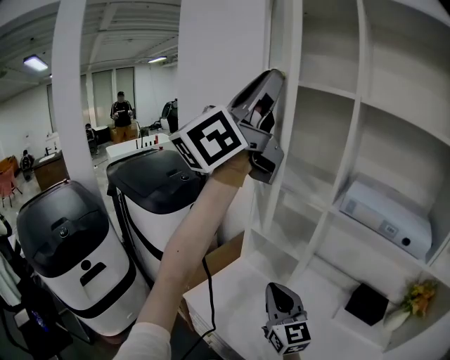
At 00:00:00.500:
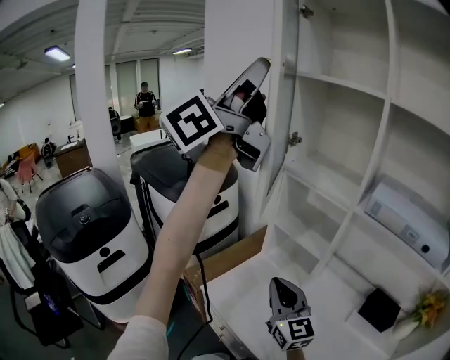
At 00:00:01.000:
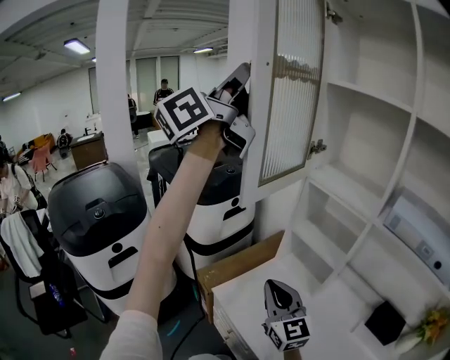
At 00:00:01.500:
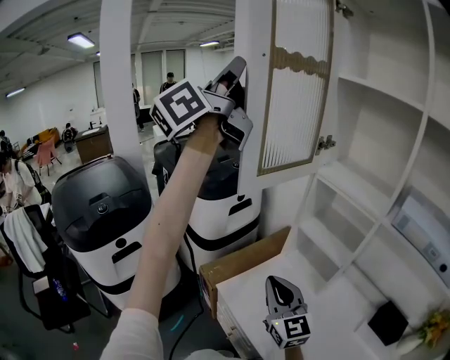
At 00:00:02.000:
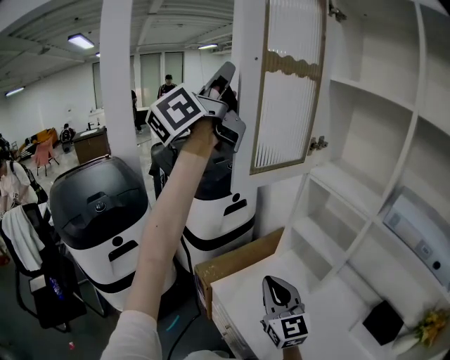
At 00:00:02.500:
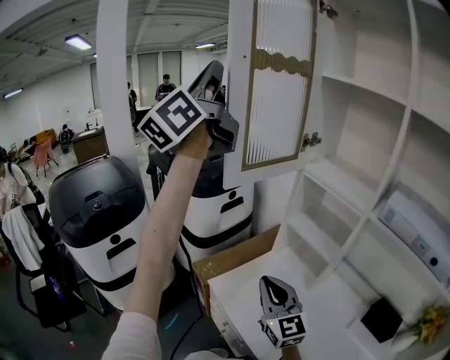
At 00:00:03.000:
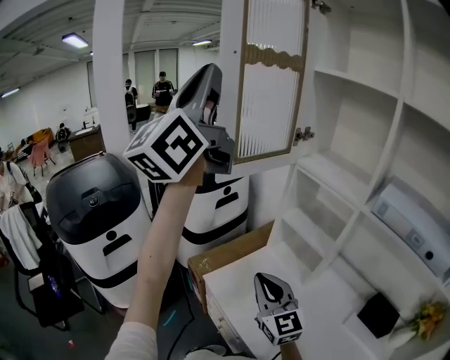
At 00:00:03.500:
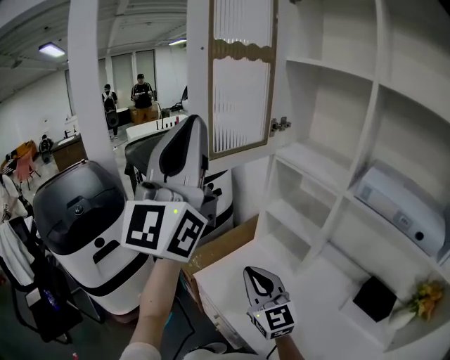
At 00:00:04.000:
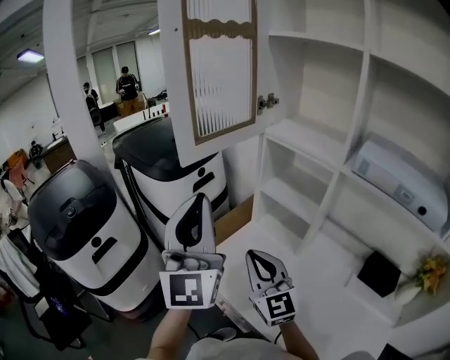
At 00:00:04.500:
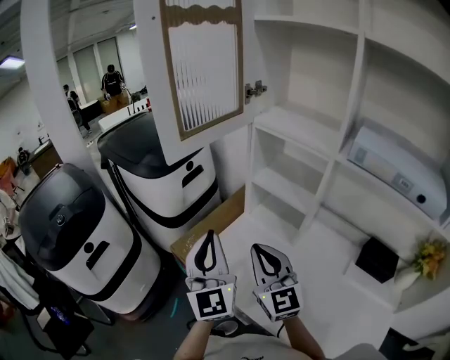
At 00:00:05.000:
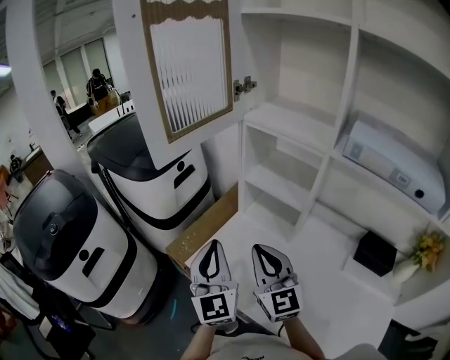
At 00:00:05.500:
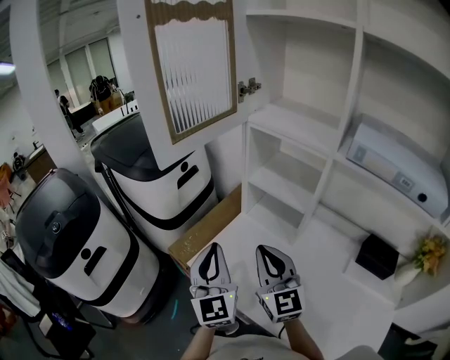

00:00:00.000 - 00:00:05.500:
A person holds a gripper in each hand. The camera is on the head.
00:00:00.000 - 00:00:02.000: The left gripper goes some 20 cm to the left, and rotates approximately 20 degrees. The right gripper moves to the left, some 10 cm.
00:00:02.000 - 00:00:03.500: The left gripper shifts some 20 cm backward, downward and to the right, and rolls clockwise, seen from behind, by approximately 40 degrees.
00:00:03.500 - 00:00:05.500: The right gripper shifts about 5 cm to the right. The left gripper travels downward by approximately 35 cm, and points its fingers approximately 40 degrees further downward.

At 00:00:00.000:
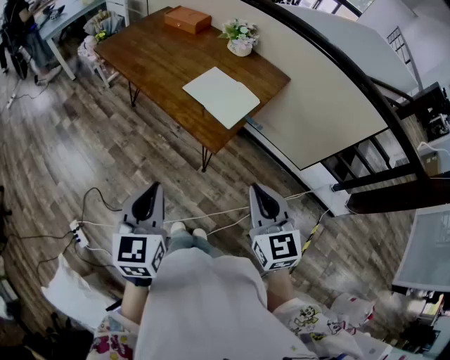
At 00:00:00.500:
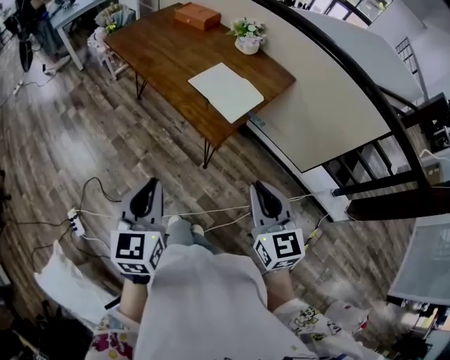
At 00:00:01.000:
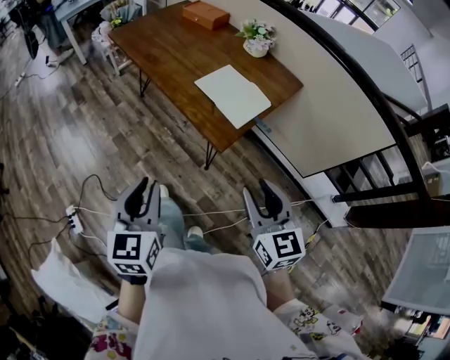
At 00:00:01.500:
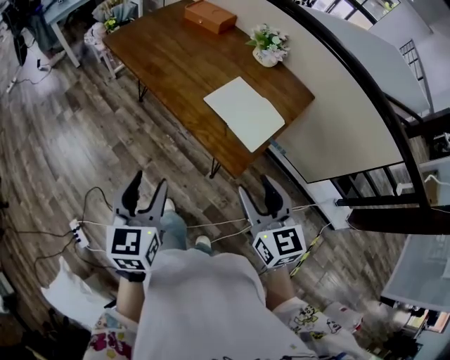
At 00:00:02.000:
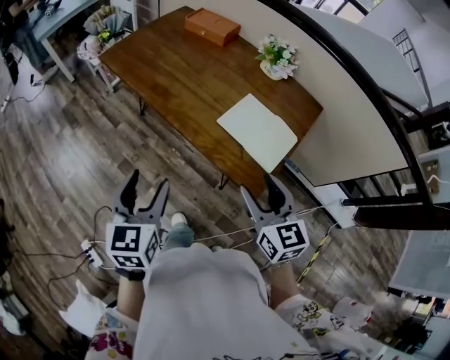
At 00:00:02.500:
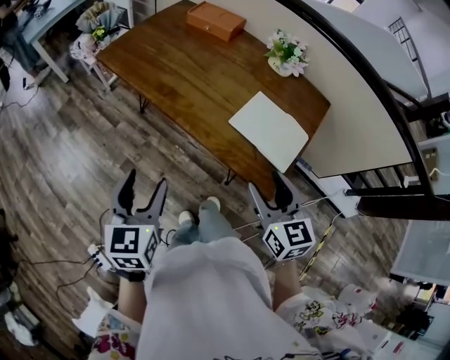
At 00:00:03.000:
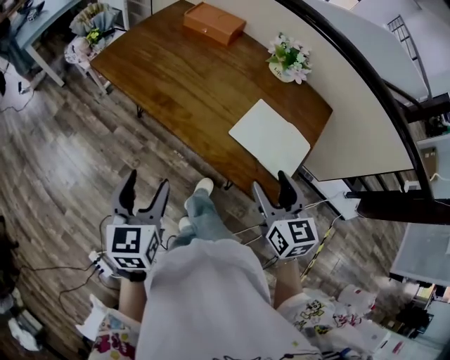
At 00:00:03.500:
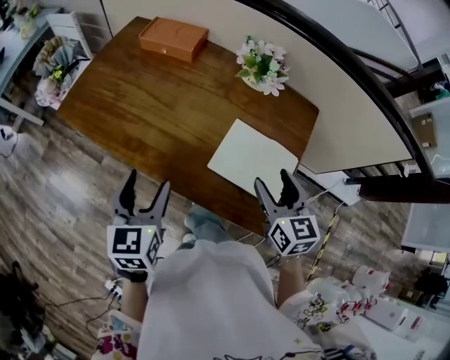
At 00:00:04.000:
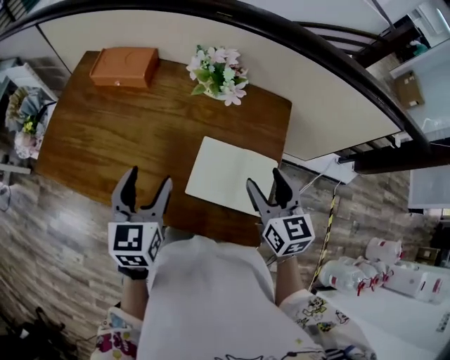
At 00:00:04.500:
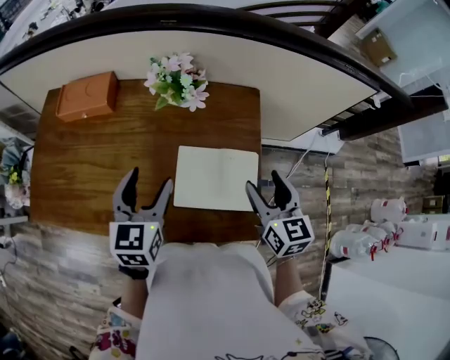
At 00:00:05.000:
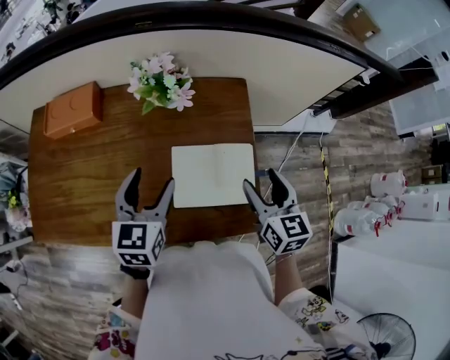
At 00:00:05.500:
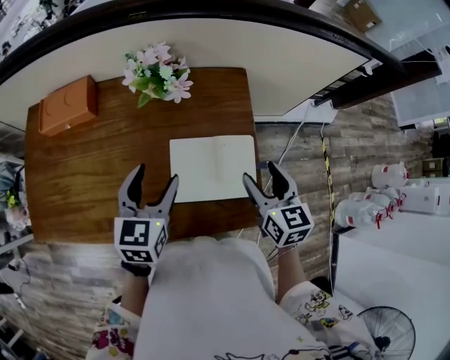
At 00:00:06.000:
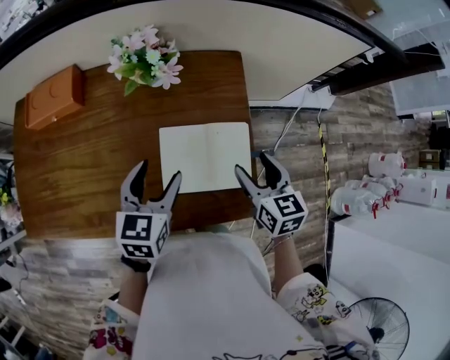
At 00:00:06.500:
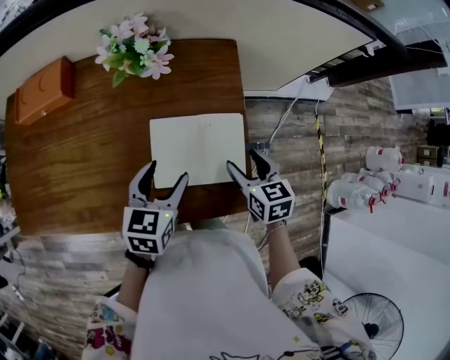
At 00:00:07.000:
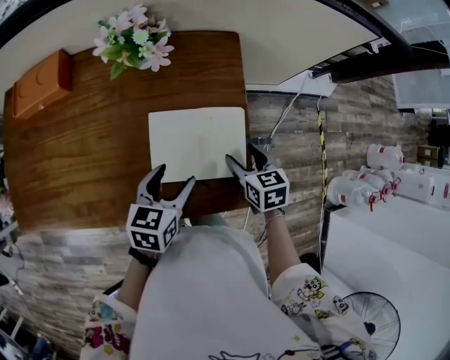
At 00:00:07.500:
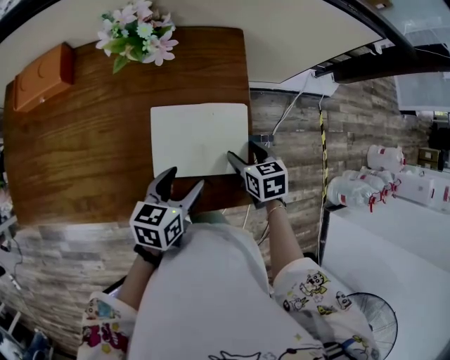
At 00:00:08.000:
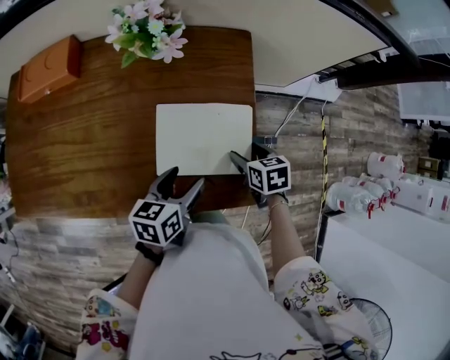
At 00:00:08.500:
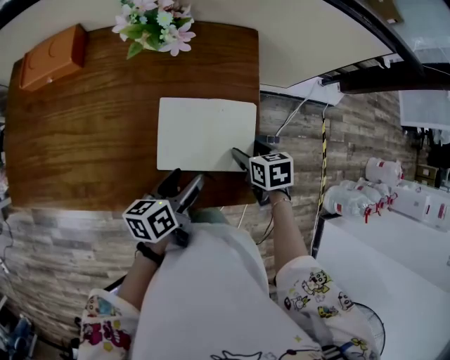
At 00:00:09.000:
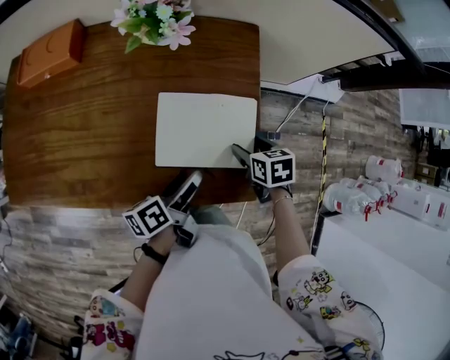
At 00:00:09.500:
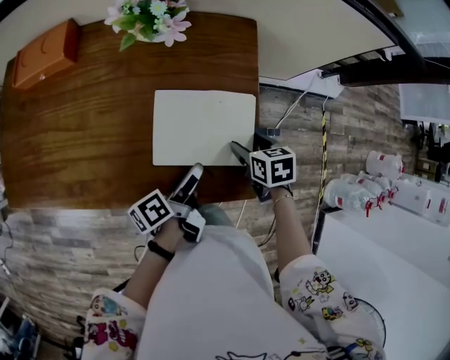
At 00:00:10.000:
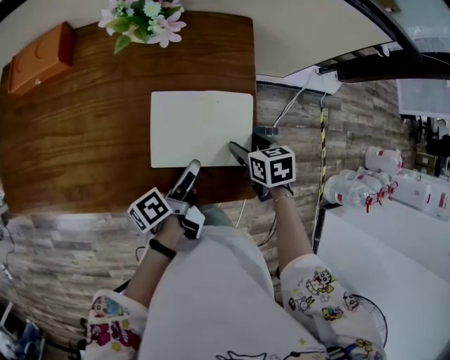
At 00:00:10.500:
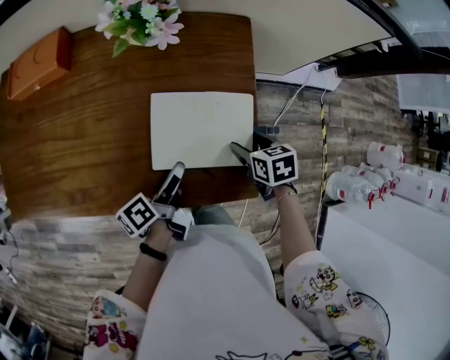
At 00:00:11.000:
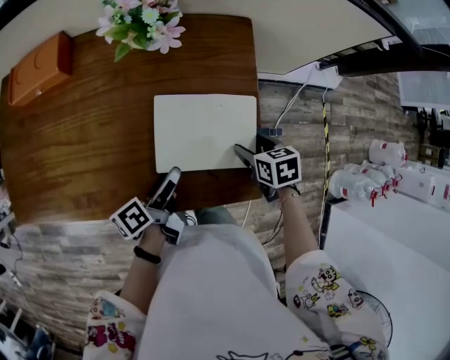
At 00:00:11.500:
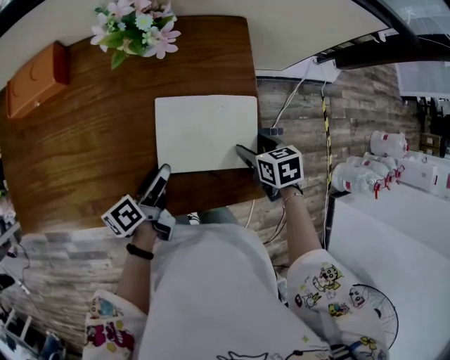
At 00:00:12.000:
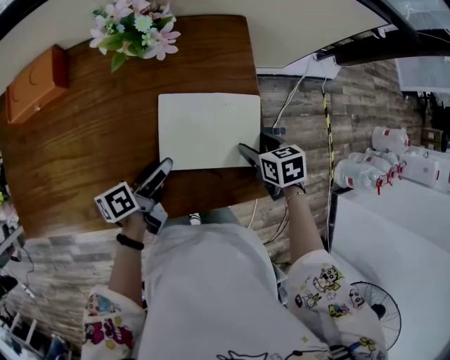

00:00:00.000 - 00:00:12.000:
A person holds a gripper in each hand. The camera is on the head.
00:00:00.000 - 00:00:02.000: The grippers both shift forward and to the left by approximately 25 cm. The right gripper opens up, while the left gripper opens.
00:00:02.000 - 00:00:04.000: The left gripper shifts by roughly 35 cm, and changes its angle by about 30 degrees. The right gripper ends up about 25 cm from where it was, and turns by about 30 degrees.
00:00:04.000 - 00:00:06.000: The right gripper shifts some 10 cm to the right and downward, and rotates approximately 20 degrees. The left gripper is displaced to the right, downward and forward by roughly 15 cm, and swivels about 30 degrees.
00:00:06.000 - 00:00:08.000: The left gripper travels downward, to the right and backward by about 15 cm, and turns by roughly 30 degrees. Meanwhile the right gripper is displaced downward by roughly 15 cm, and rotates roughly 30 degrees.
00:00:08.000 - 00:00:10.000: The left gripper rotates around the line of its fingers by about 50 degrees, counterclockwise from behind.
00:00:10.000 - 00:00:12.000: The left gripper is displaced to the left by about 10 cm, and swivels about 20 degrees.

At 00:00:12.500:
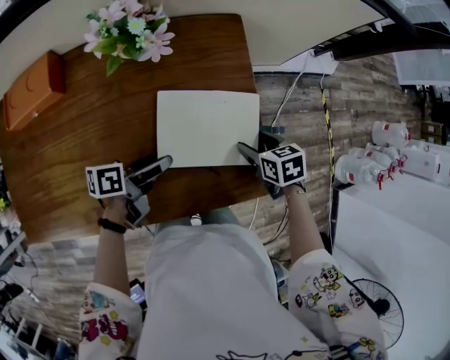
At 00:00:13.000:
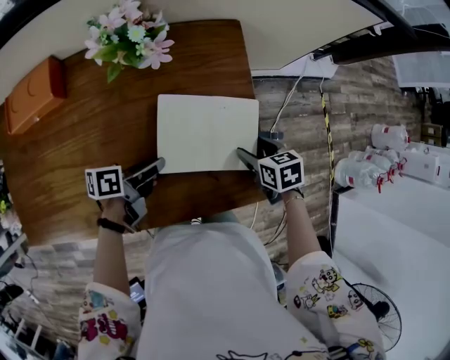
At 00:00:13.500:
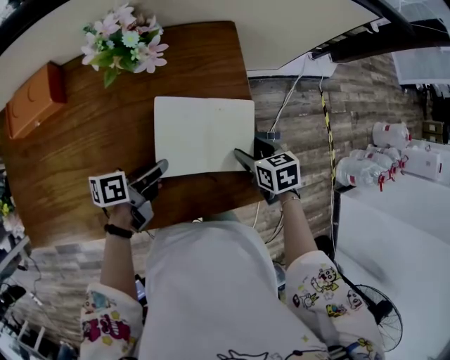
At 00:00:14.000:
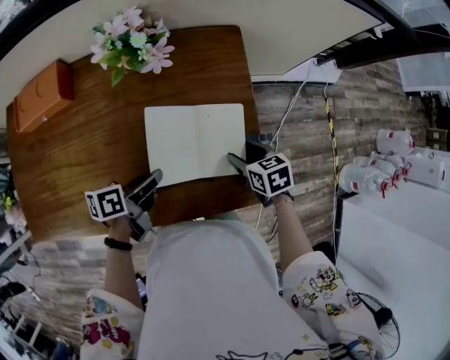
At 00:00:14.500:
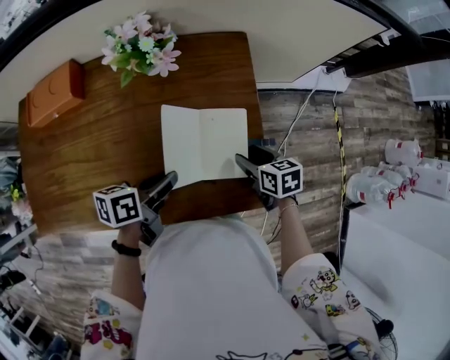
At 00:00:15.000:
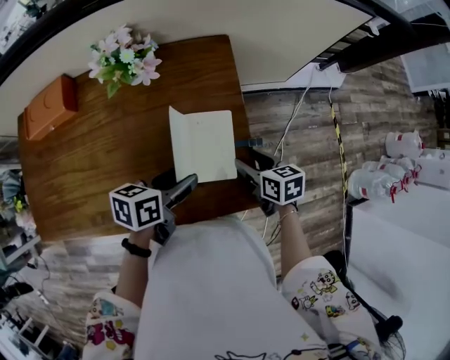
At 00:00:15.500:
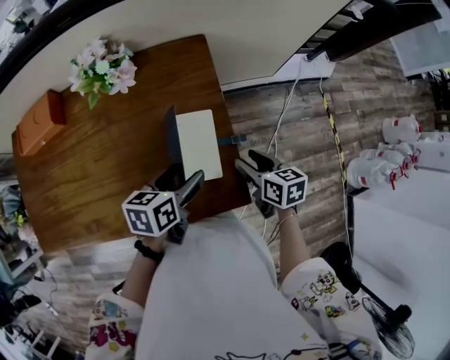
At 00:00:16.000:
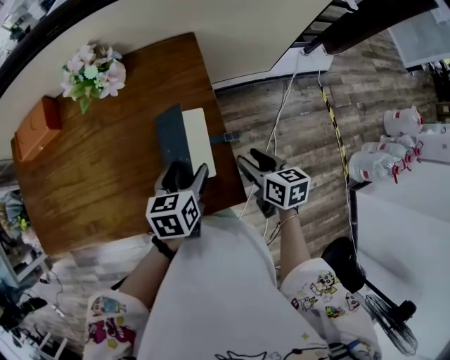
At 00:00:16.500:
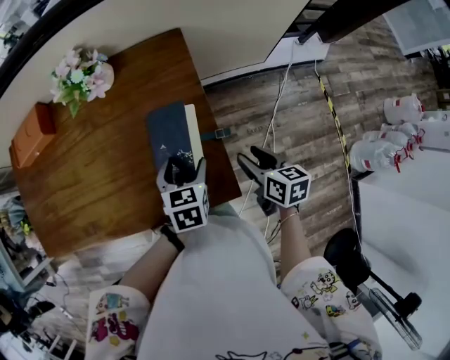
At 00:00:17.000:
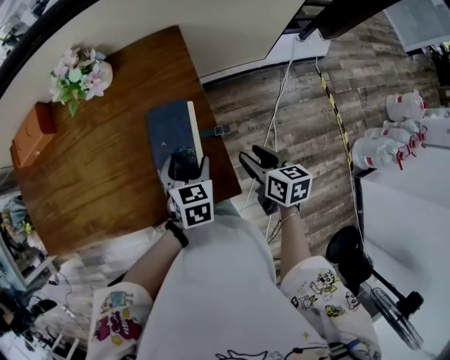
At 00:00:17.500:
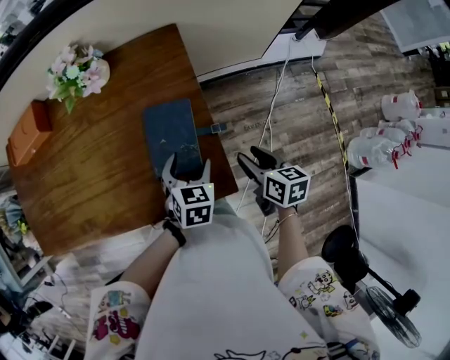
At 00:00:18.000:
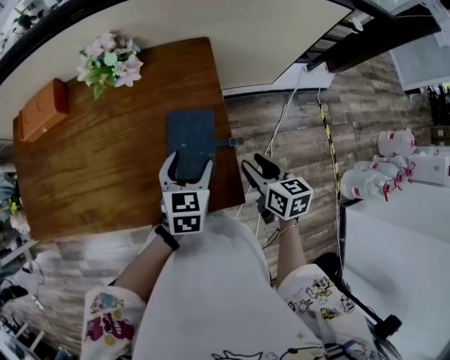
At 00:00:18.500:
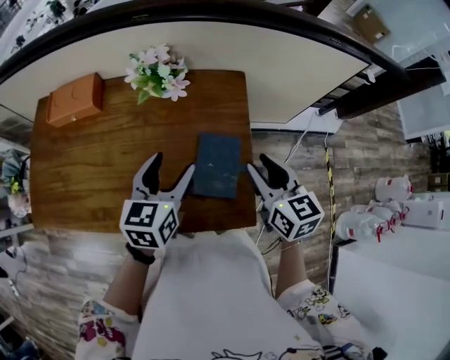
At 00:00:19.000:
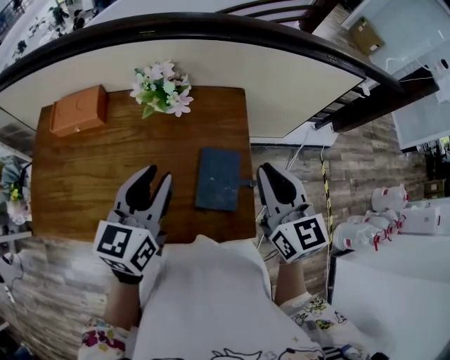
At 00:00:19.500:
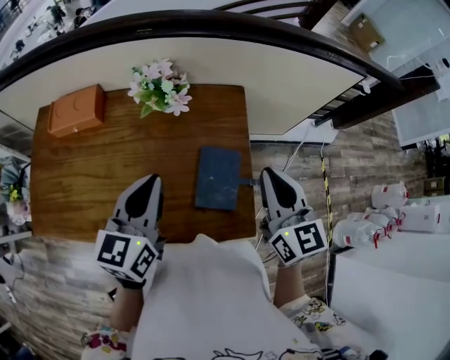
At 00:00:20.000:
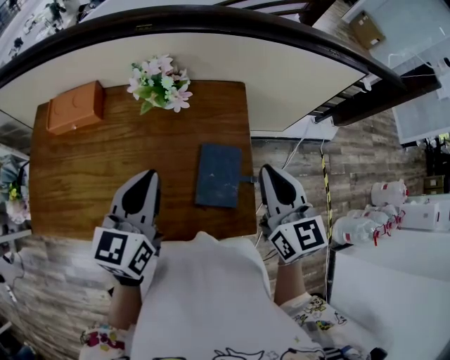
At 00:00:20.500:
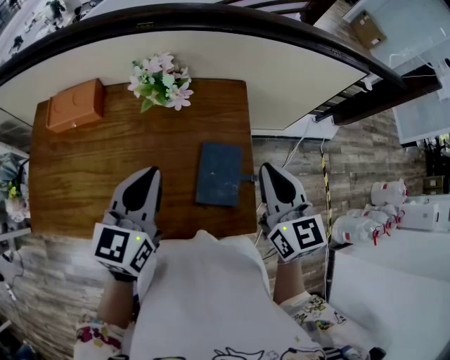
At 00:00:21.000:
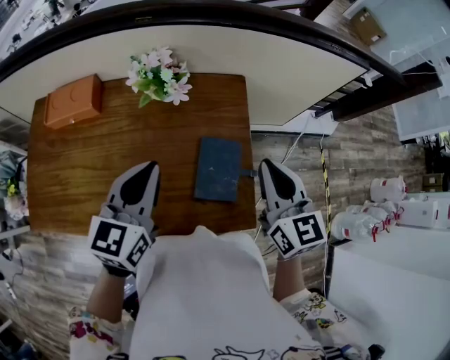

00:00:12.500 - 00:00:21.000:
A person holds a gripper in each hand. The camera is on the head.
00:00:12.500 - 00:00:14.500: The left gripper heads upward, covering about 5 cm, and closes its fingers.
00:00:14.500 - 00:00:16.500: Both grippers travel together to the right, some 15 cm. The left gripper rotates approximately 50 degrees, and opens its fingers.
00:00:16.500 - 00:00:19.000: Both grippers travel together upward and to the left, roughly 30 cm. The left gripper tips its fingers upward by about 30 degrees, and closes up; the right gripper rotates some 40 degrees, and closes its fingers.
00:00:19.000 - 00:00:21.000: The left gripper closes.
